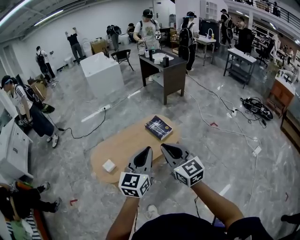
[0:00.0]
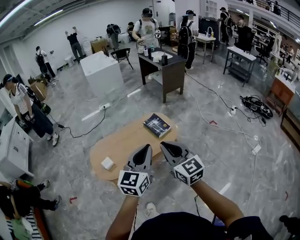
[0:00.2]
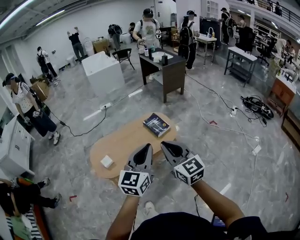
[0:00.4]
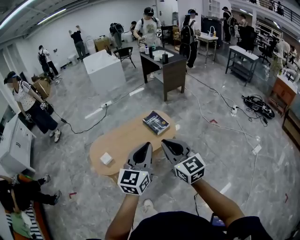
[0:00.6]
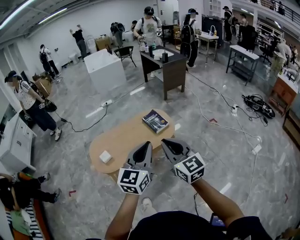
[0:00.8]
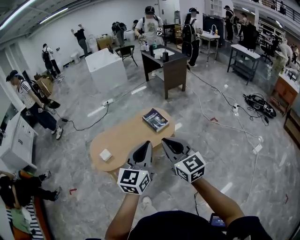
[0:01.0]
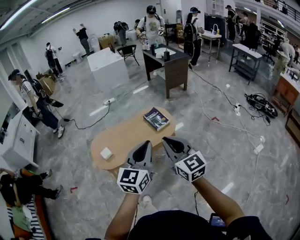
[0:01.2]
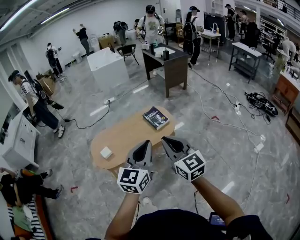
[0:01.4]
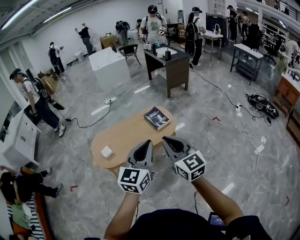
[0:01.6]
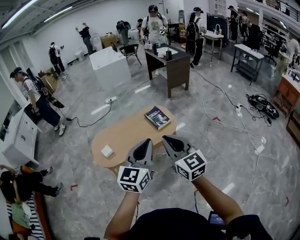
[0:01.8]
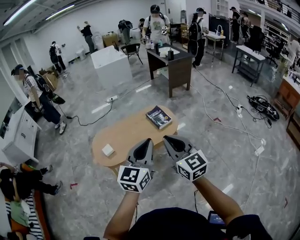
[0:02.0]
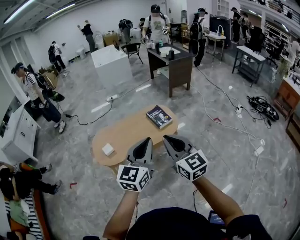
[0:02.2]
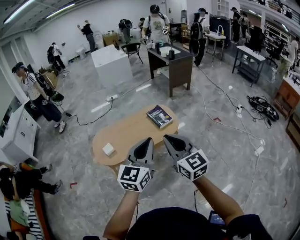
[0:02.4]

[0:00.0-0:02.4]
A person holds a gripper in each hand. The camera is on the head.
0:00.0 to 0:01.2: The two grippers go about 10 cm to the right and backward.
0:01.2 to 0:02.4: The grippers stay close to where they were, moving slightly.

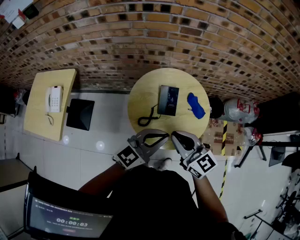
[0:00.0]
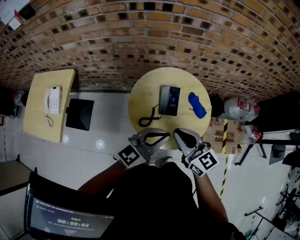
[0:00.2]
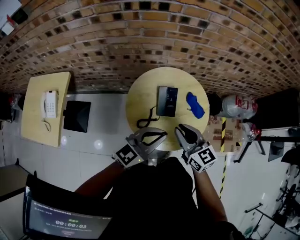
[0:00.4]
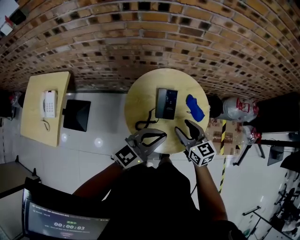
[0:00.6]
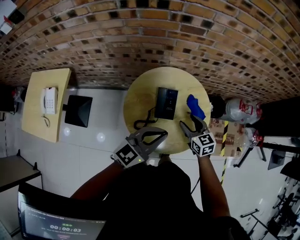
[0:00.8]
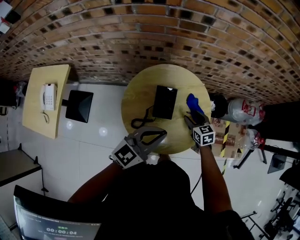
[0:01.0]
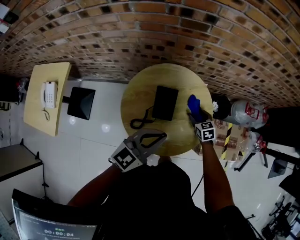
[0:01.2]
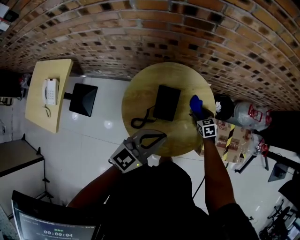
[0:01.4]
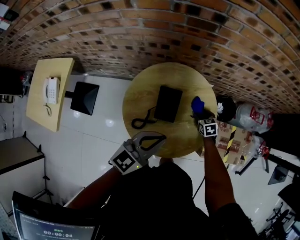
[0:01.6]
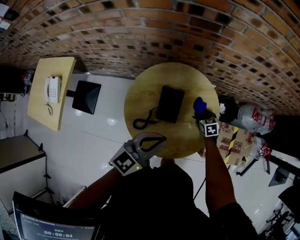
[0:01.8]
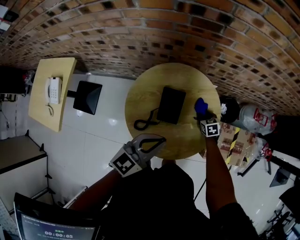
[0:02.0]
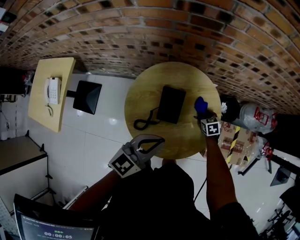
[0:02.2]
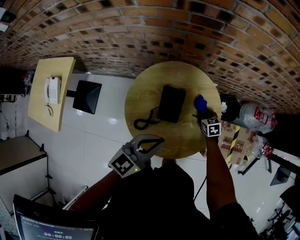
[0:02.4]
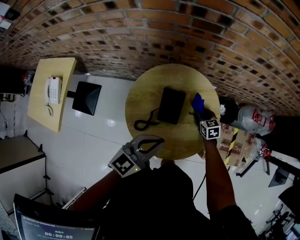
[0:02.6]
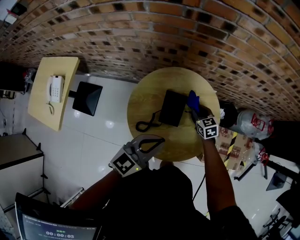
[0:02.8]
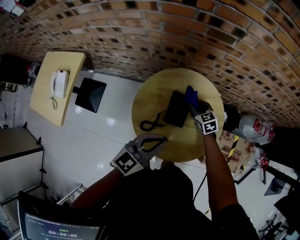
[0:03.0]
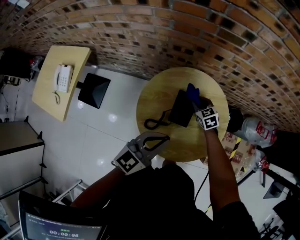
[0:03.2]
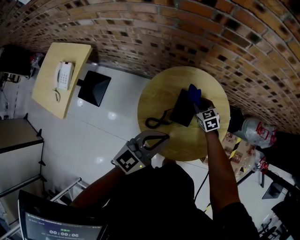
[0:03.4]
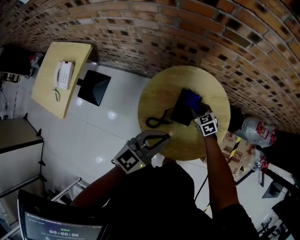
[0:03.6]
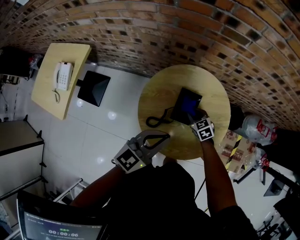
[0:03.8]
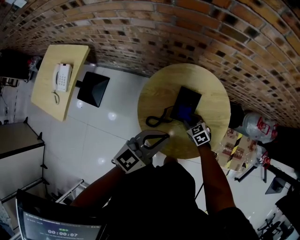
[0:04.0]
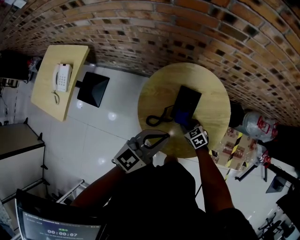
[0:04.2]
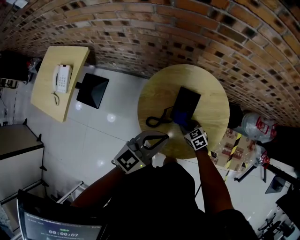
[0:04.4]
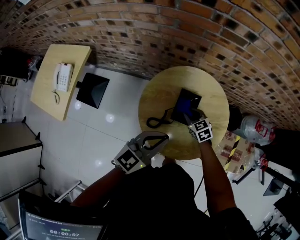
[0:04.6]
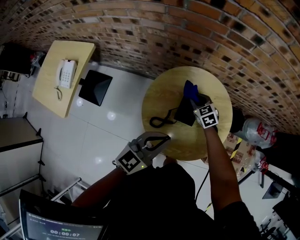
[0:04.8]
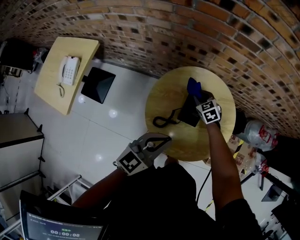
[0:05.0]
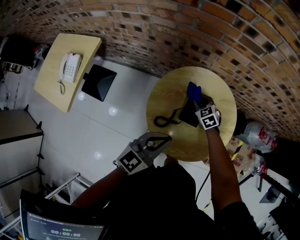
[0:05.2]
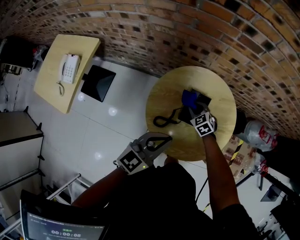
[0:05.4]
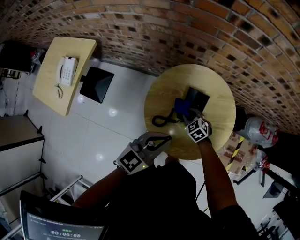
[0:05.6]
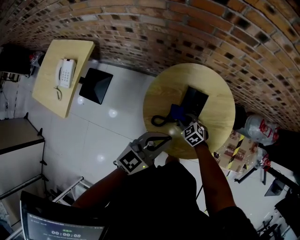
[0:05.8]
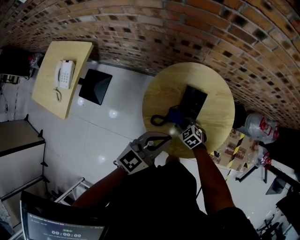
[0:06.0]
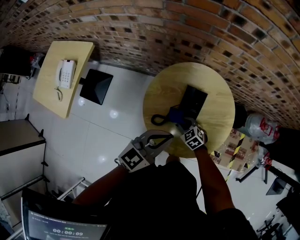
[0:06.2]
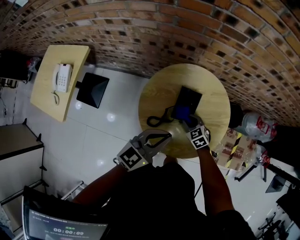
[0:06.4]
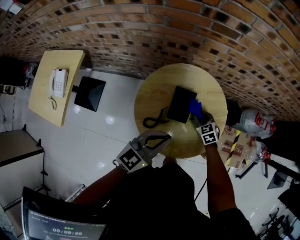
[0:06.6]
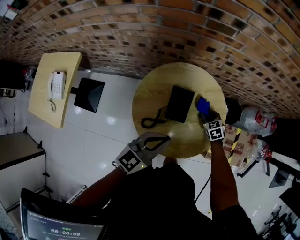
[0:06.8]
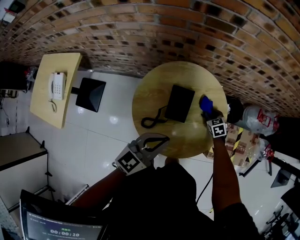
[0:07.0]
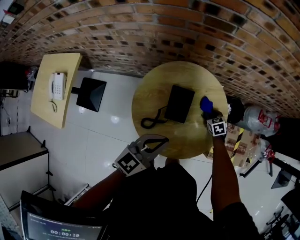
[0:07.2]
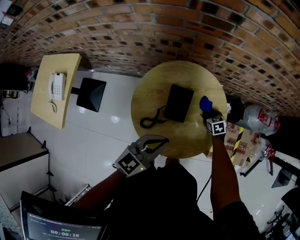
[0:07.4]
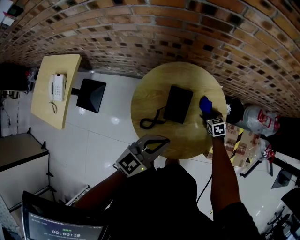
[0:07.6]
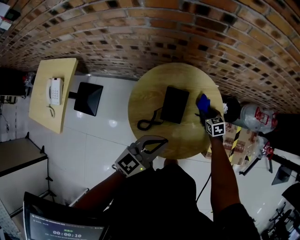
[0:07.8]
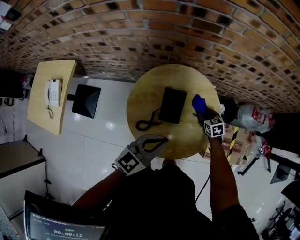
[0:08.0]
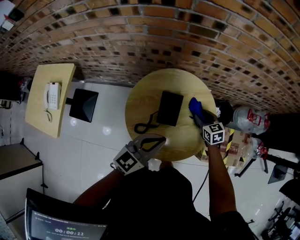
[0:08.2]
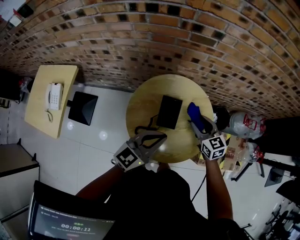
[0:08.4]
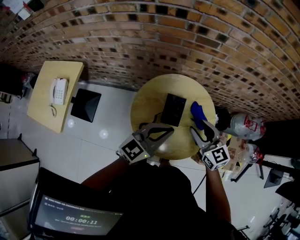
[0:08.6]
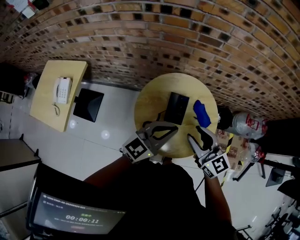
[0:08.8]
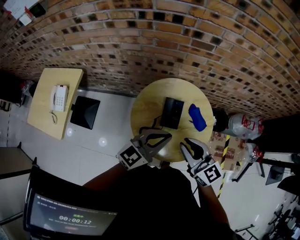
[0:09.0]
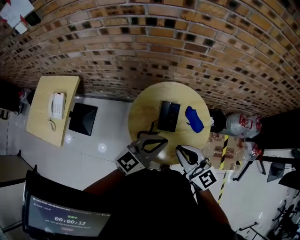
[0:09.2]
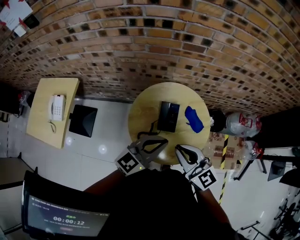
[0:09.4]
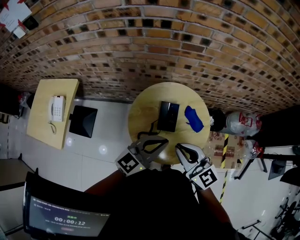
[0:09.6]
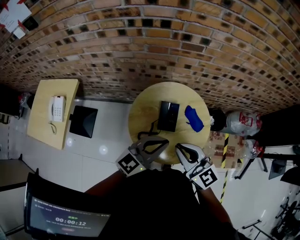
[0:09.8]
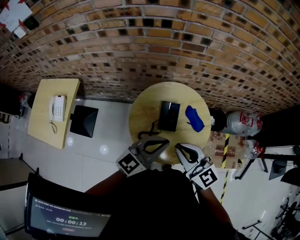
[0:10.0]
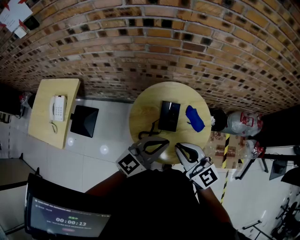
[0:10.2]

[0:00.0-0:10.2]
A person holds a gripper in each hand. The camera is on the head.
0:00.0 to 0:01.4: The right gripper heads downward, forward and to the right, covering approximately 50 cm, tilts its fingers about 40 degrees downward, and opens up. Meanwhile the left gripper is displaced forward and downward by some 15 cm.
0:01.4 to 0:03.0: The right gripper heads to the left and upward, covering some 15 cm, and closes.
0:03.0 to 0:04.4: The right gripper heads backward, to the left and downward, covering about 15 cm.
0:04.4 to 0:05.8: The right gripper moves some 15 cm forward and comes back.
0:05.8 to 0:07.2: The left gripper moves to the right, some 5 cm. The right gripper shifts about 25 cm to the right, and changes its angle by about 30 degrees.
0:07.2 to 0:08.8: The left gripper heads upward, covering some 10 cm; the right gripper moves upward and backward, roughly 40 cm, tips its fingers upward by approximately 50 degrees, and opens up.
0:08.8 to 0:10.2: The right gripper moves approximately 5 cm, and closes up.

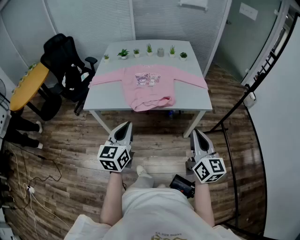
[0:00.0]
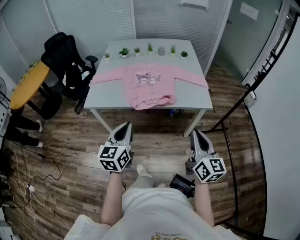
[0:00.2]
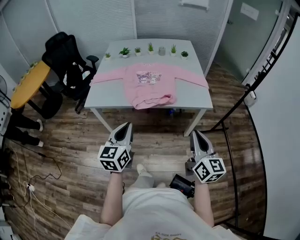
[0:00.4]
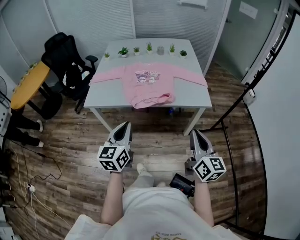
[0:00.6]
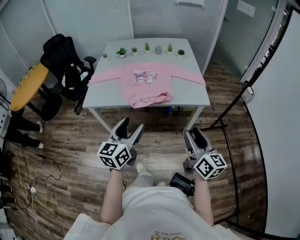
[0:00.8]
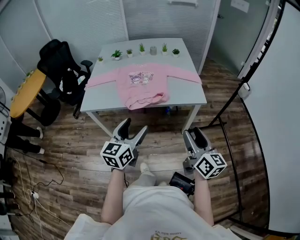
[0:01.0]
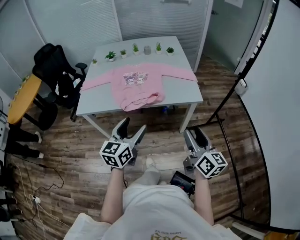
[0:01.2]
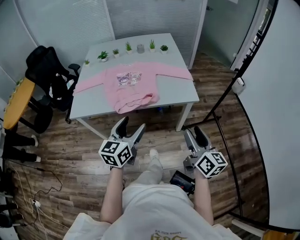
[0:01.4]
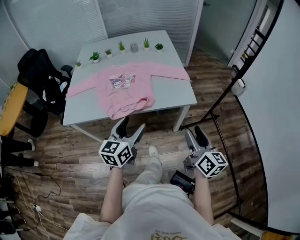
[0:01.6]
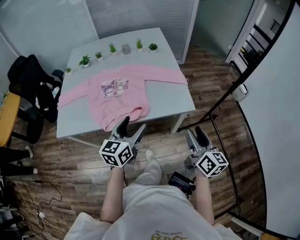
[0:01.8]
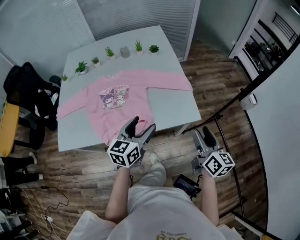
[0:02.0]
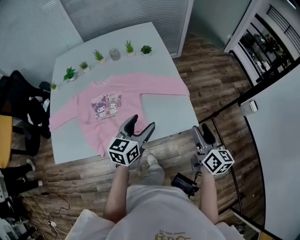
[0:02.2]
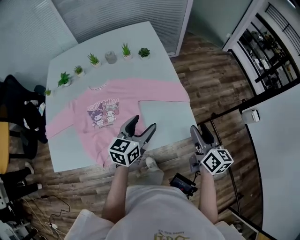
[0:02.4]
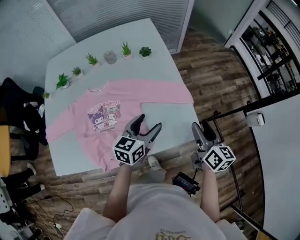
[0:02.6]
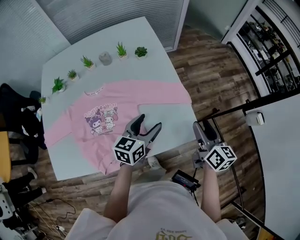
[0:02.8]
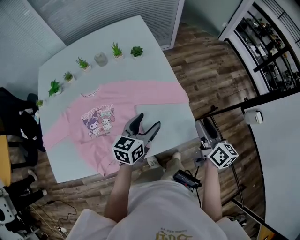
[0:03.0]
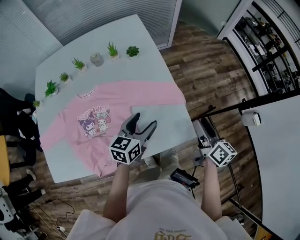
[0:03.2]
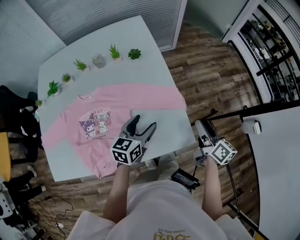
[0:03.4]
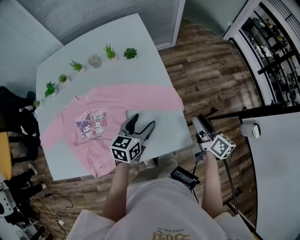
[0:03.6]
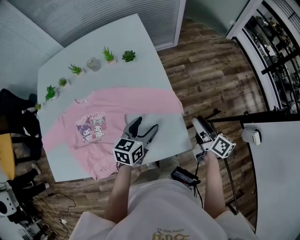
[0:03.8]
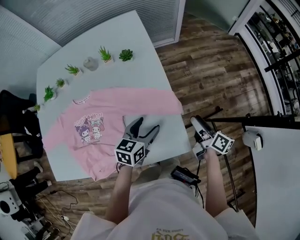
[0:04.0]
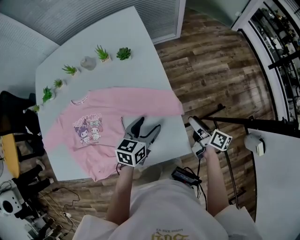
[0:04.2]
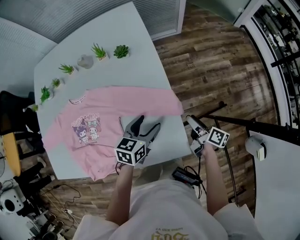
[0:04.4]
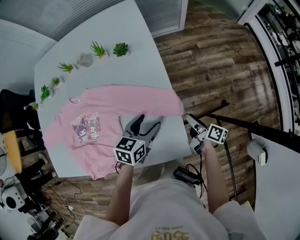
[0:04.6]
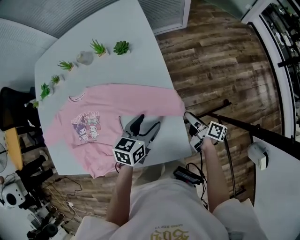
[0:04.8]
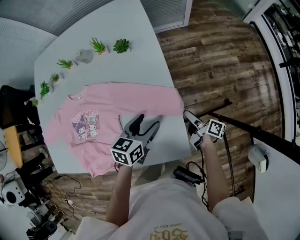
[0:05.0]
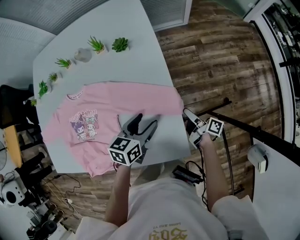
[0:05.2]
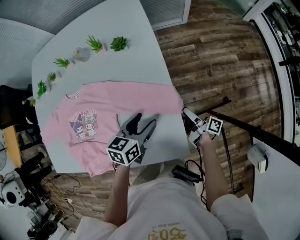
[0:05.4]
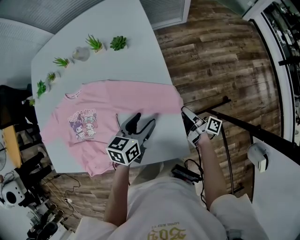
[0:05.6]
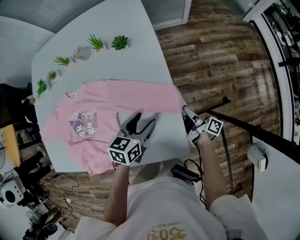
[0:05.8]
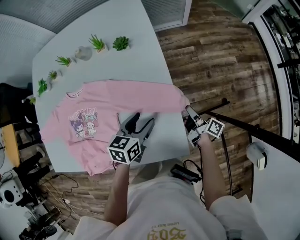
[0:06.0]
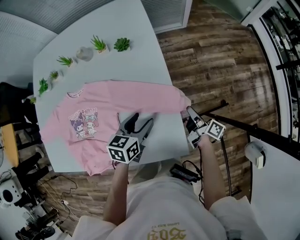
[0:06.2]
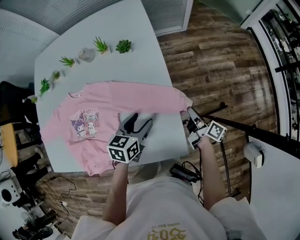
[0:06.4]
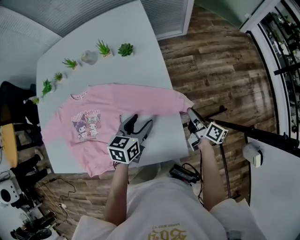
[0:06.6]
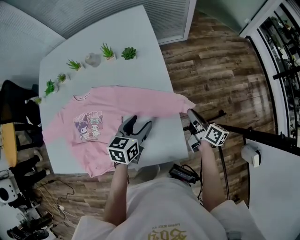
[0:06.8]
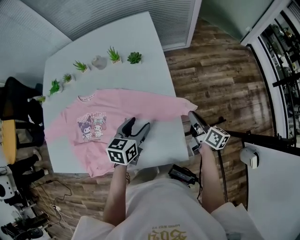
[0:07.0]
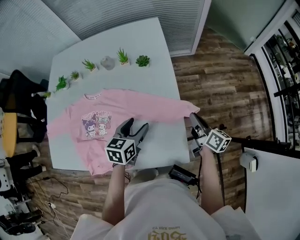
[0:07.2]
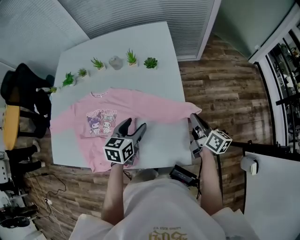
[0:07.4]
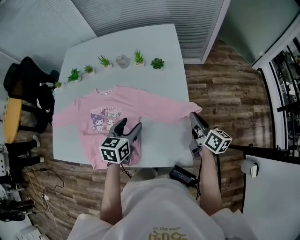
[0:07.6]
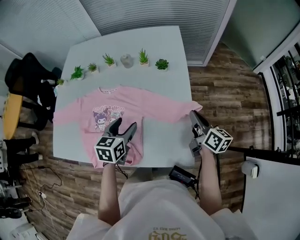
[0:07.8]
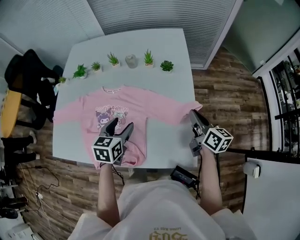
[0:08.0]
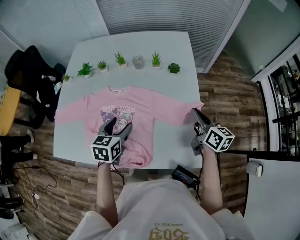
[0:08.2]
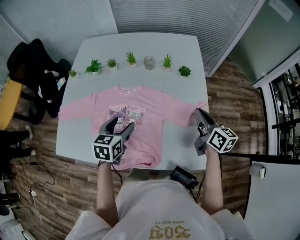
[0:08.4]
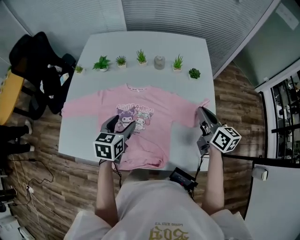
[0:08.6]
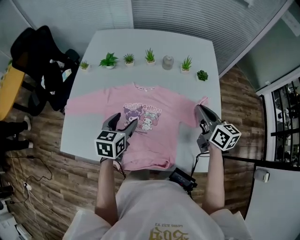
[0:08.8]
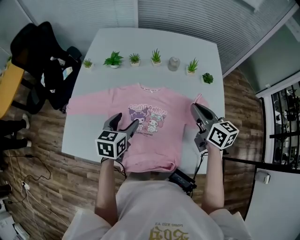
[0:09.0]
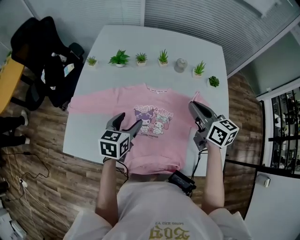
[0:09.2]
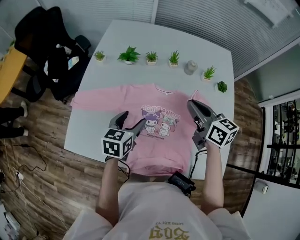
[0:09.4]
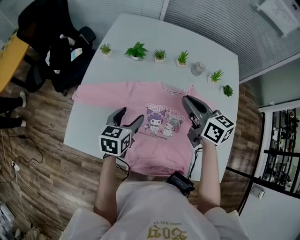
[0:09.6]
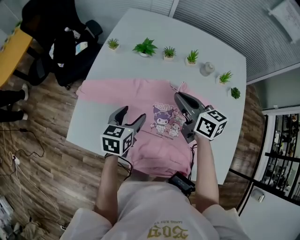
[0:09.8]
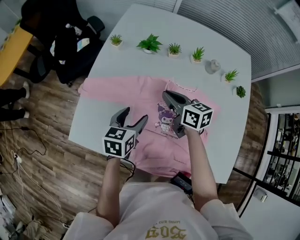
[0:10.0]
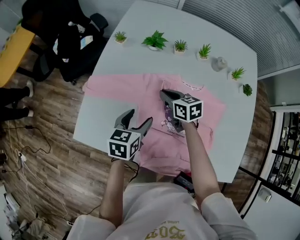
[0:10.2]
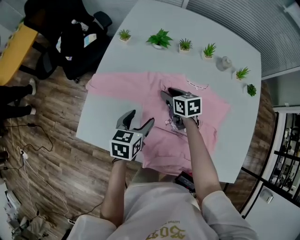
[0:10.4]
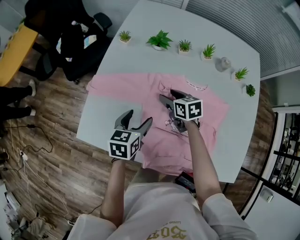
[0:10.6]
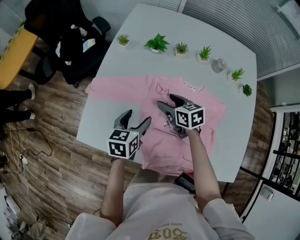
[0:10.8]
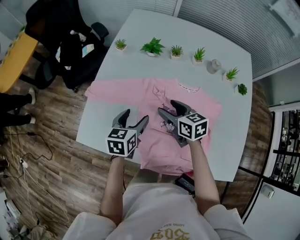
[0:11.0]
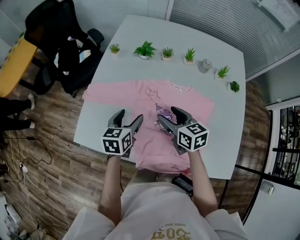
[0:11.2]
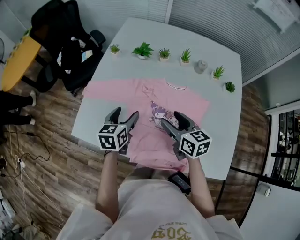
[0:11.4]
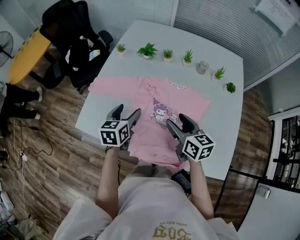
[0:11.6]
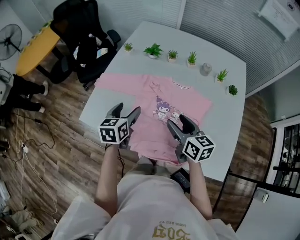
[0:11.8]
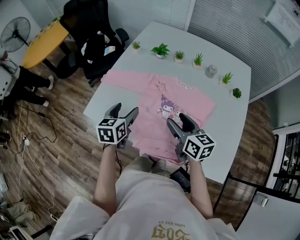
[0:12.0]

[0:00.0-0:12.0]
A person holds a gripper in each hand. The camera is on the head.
0:00.0 to 0:01.6: The left gripper shifts approximately 15 cm to the right and forward, and opens up; the right gripper is displaced to the right, forward and downward by some 15 cm, and opens up.
0:01.6 to 0:03.0: Both grippers travel together forward, about 35 cm. The left gripper changes its angle by some 20 degrees.
0:03.0 to 0:04.4: The left gripper shifts some 15 cm downward, forward and to the right, while the right gripper moves downward and forward, roughly 20 cm, and rotates about 40 degrees.
0:04.4 to 0:06.0: The right gripper heads downward, covering some 5 cm, and closes its fingers.
0:06.0 to 0:07.6: The right gripper moves upward, some 20 cm, and changes its angle by roughly 40 degrees. The left gripper heads to the left and upward, covering about 15 cm.
0:07.6 to 0:09.0: Both grippers travel together to the left, some 30 cm. The right gripper changes its angle by roughly 30 degrees.
0:09.0 to 0:10.4: The left gripper goes about 15 cm to the left and downward. Meanwhile the right gripper shifts about 40 cm to the left, downward and forward, rotates roughly 30 degrees, and opens up.
0:10.4 to 0:12.0: The left gripper goes some 15 cm upward and backward. The right gripper moves backward and upward, about 30 cm, turns by some 20 degrees, and opens up.
